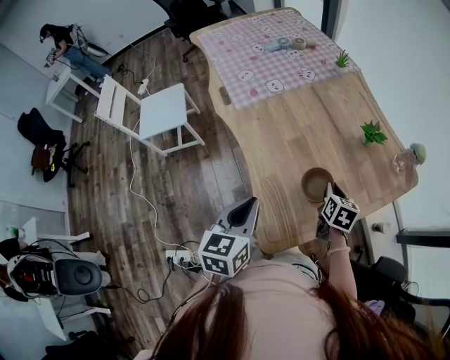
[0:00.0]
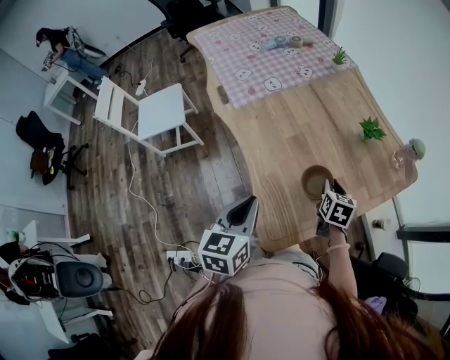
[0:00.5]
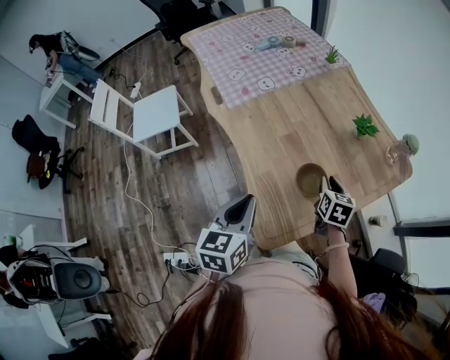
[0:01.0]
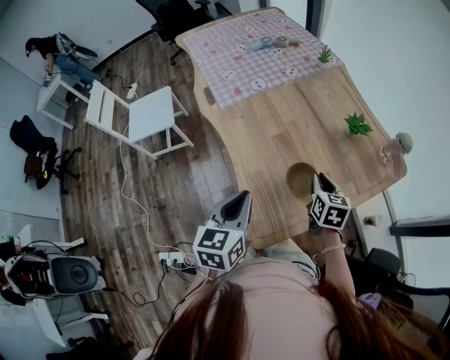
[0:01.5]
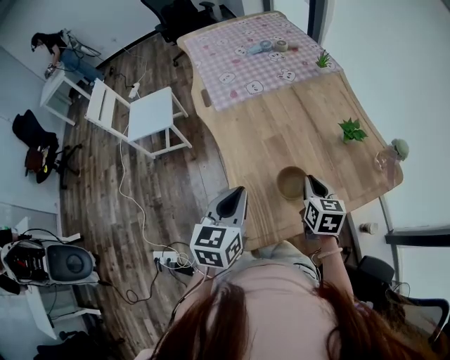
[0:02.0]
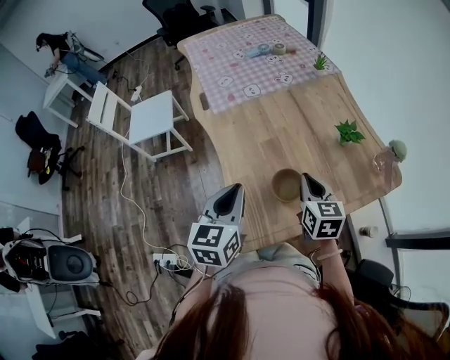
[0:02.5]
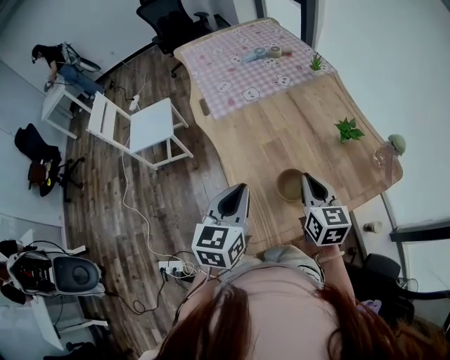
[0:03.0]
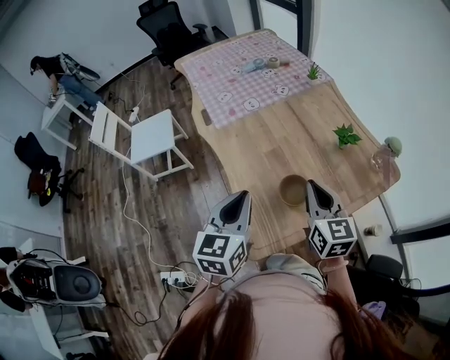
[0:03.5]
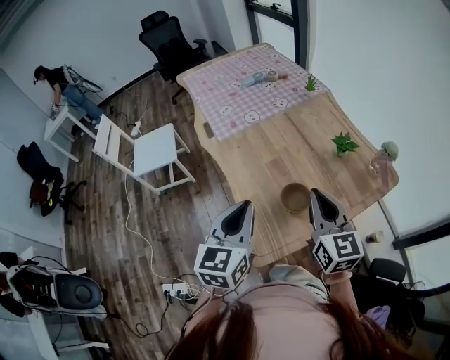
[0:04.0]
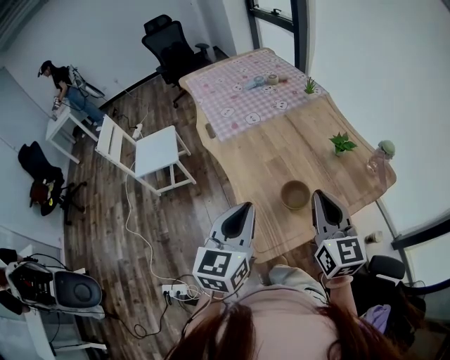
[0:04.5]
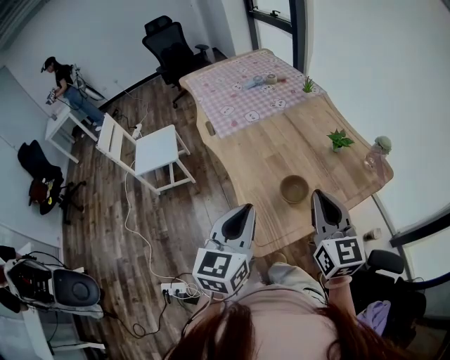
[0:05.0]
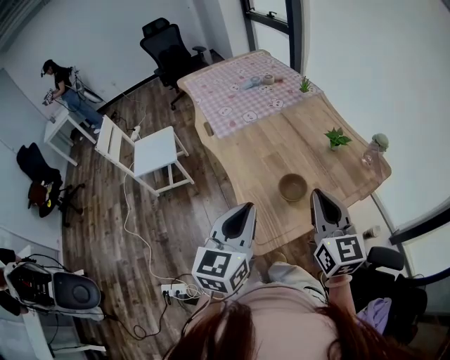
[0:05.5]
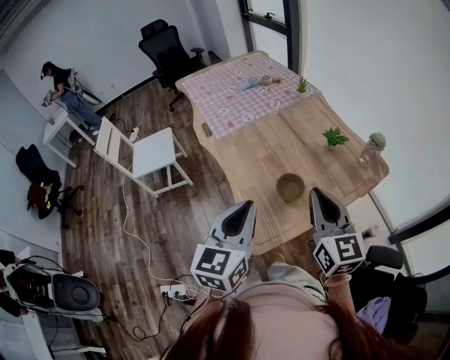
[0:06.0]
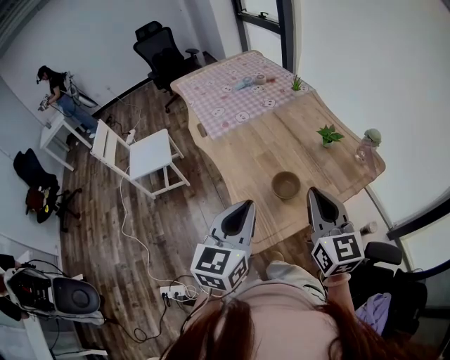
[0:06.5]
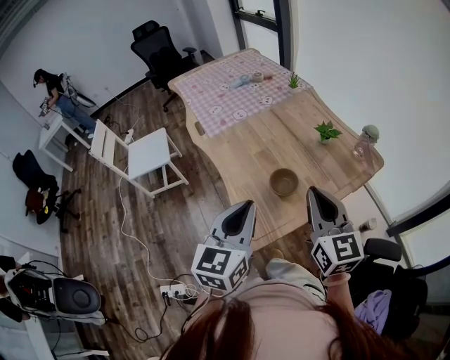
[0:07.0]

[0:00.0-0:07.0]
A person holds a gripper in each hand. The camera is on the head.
0:00.0 to 0:02.0: The left gripper moves approximately 5 cm, while the right gripper shifts about 5 cm upward.
0:02.0 to 0:03.5: The left gripper moves upward, approximately 5 cm. Meanwhile the right gripper goes approximately 10 cm upward.
0:03.5 to 0:05.0: The grippers both shift backward and upward by roughly 10 cm.
0:05.0 to 0:07.0: The grippers stay close to where they were, moving slightly.

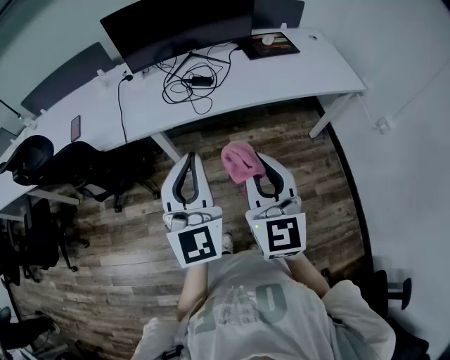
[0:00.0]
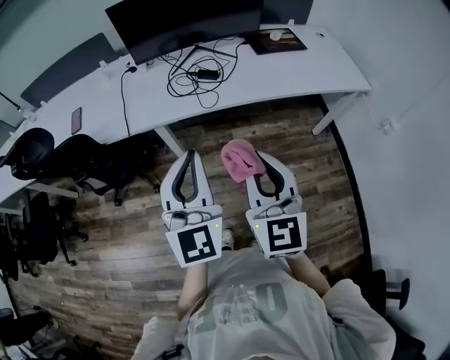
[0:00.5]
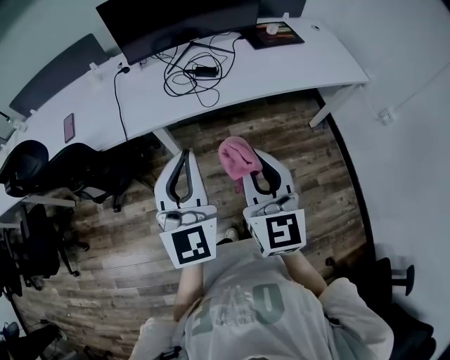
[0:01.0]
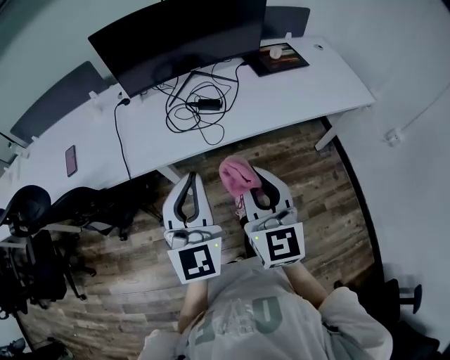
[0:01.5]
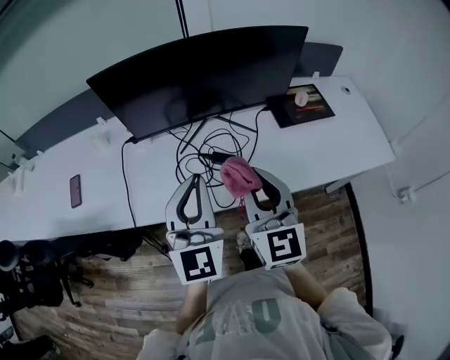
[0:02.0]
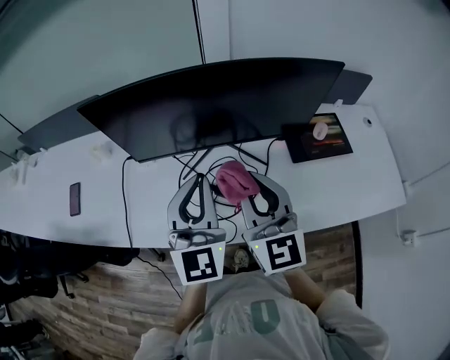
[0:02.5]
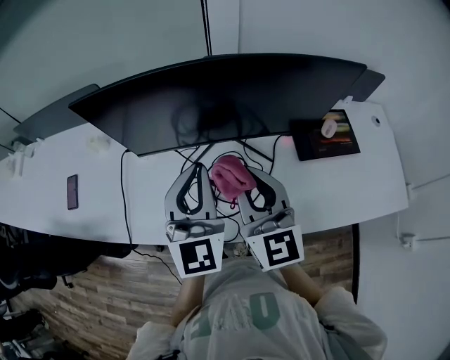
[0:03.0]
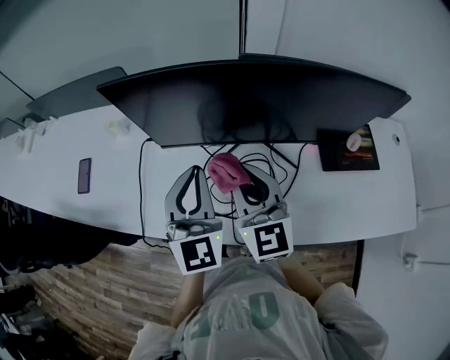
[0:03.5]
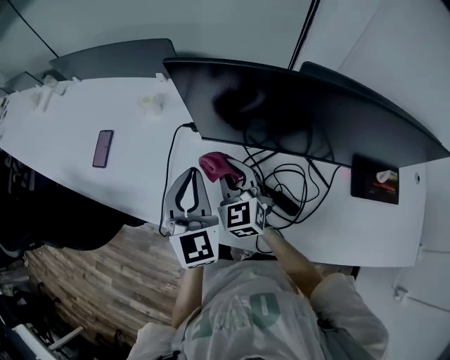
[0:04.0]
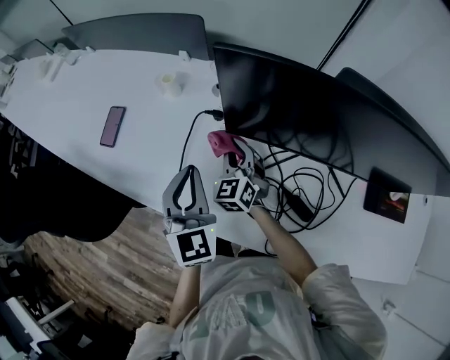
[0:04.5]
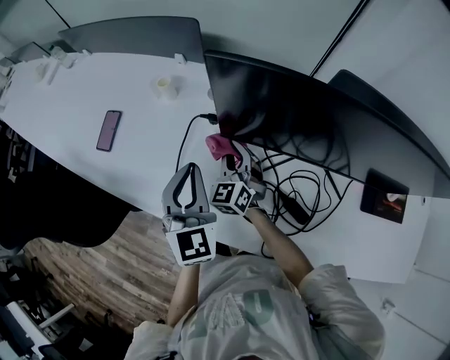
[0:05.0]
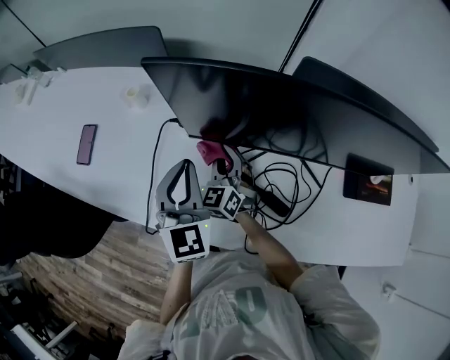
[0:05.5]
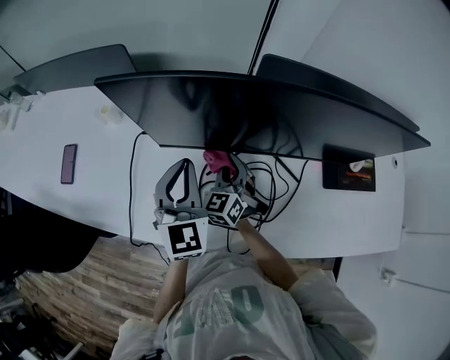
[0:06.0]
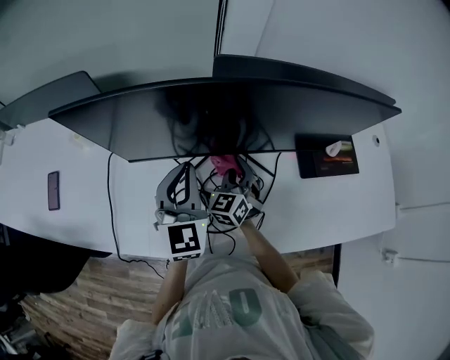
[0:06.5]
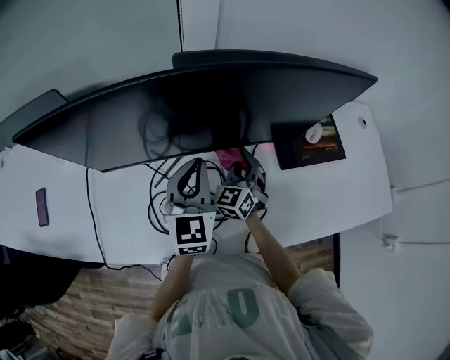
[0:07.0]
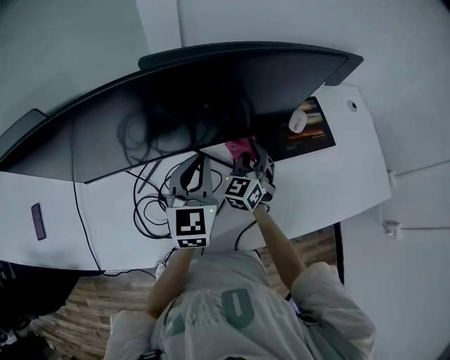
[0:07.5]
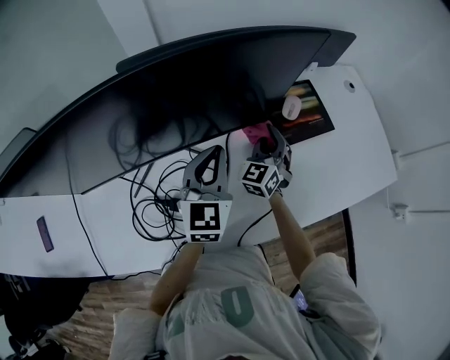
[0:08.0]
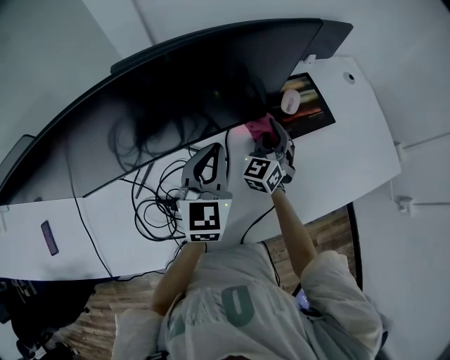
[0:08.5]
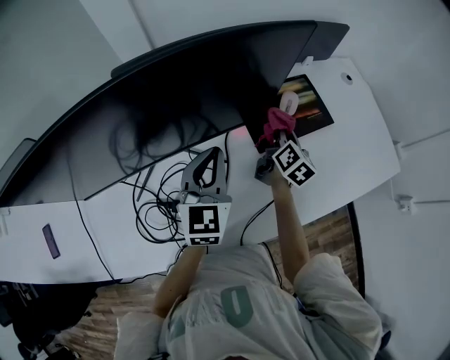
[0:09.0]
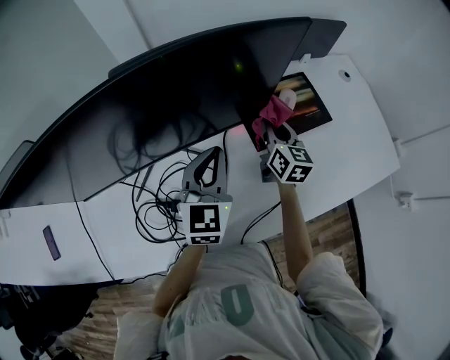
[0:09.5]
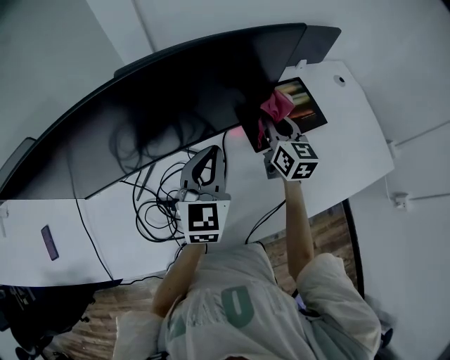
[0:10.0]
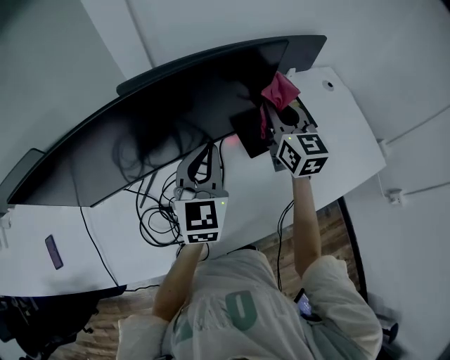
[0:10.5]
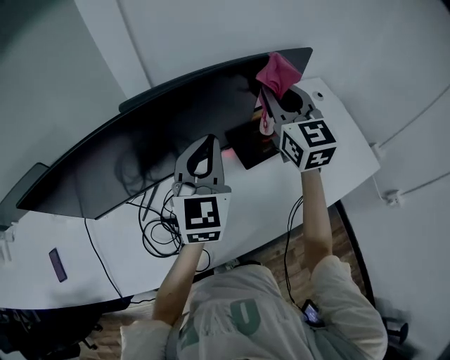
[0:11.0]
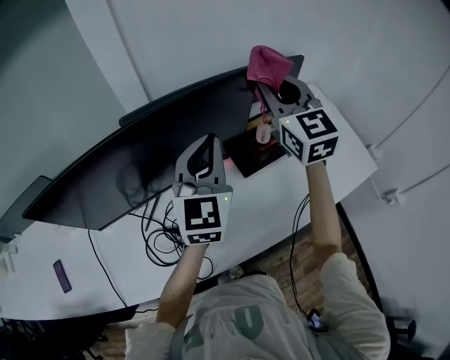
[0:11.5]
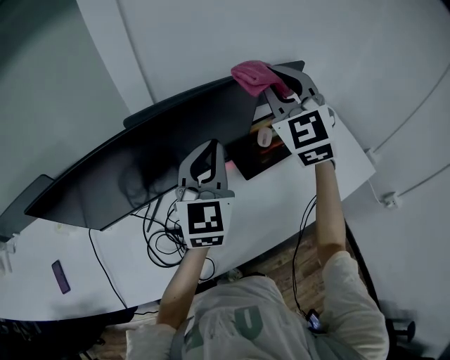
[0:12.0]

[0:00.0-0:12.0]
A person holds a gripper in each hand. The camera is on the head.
0:00.0 to 0:02.0: Both grippers move forward, about 35 cm.
0:02.0 to 0:04.0: The right gripper shifts by about 40 cm, and changes its angle by some 40 degrees, while the left gripper ends up about 30 cm from where it was, and changes its angle by roughly 30 degrees.
0:04.0 to 0:06.0: The left gripper is displaced to the right by some 10 cm, while the right gripper heads to the right and downward, covering roughly 15 cm, and changes its angle by about 30 degrees.
0:06.0 to 0:08.0: The left gripper changes place by some 35 cm, and changes its angle by roughly 30 degrees, while the right gripper changes place by roughly 40 cm, and changes its angle by about 30 degrees.
0:08.0 to 0:10.0: The right gripper travels upward by some 10 cm, and rotates around the line of its fingers by some 40 degrees, clockwise from behind.
0:10.0 to 0:12.0: The right gripper is displaced upward by approximately 30 cm, and rolls counterclockwise, seen from behind, by approximately 50 degrees, while the left gripper travels upward by some 15 cm.

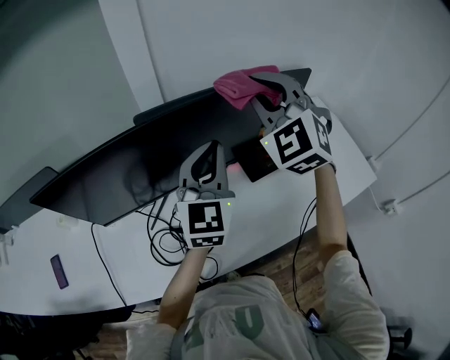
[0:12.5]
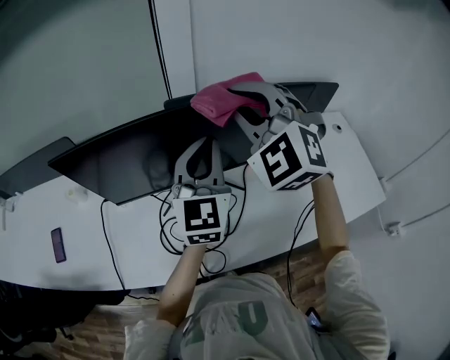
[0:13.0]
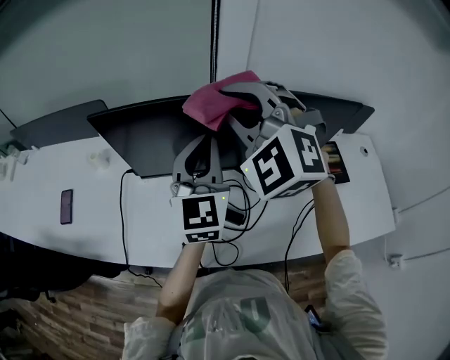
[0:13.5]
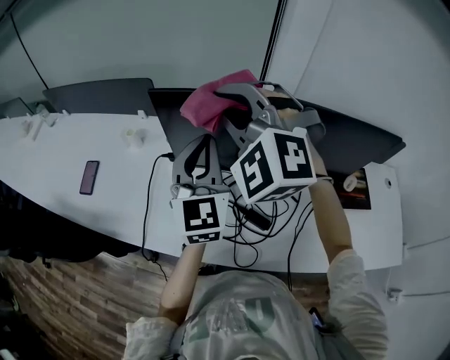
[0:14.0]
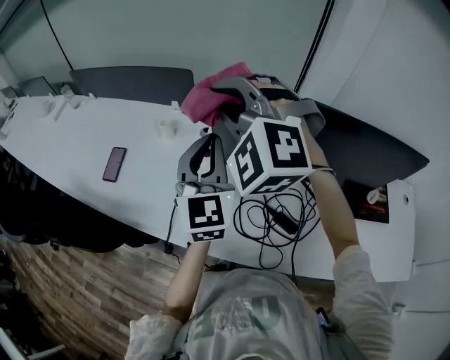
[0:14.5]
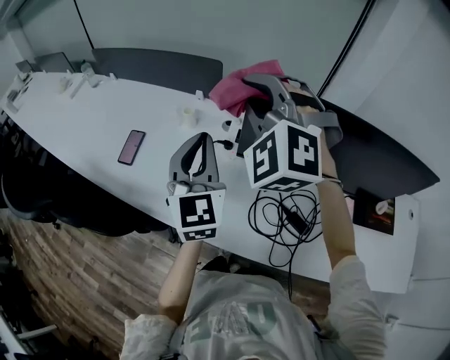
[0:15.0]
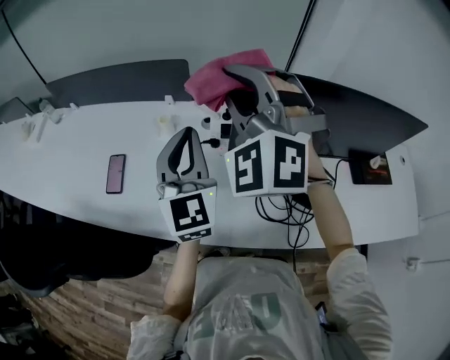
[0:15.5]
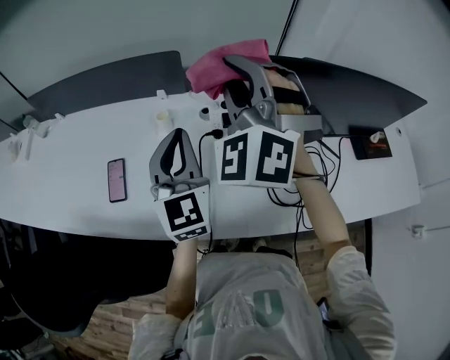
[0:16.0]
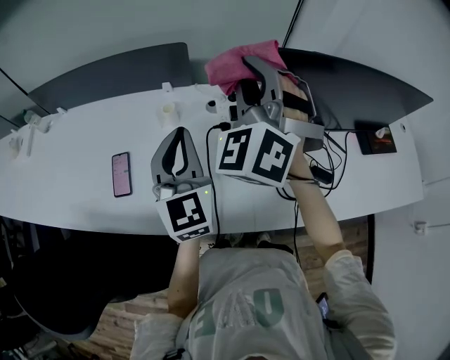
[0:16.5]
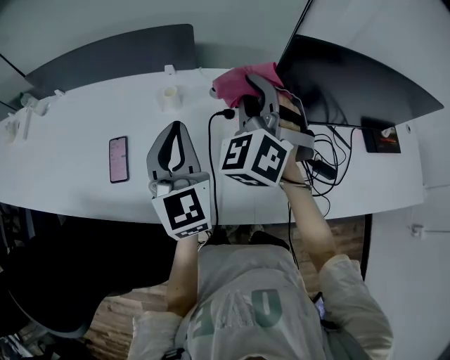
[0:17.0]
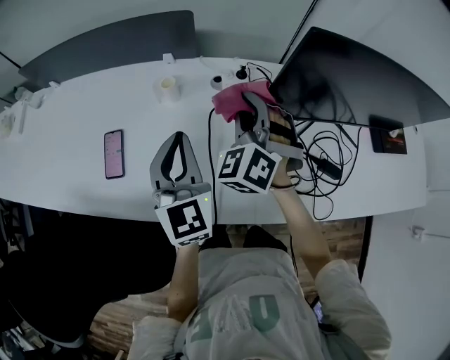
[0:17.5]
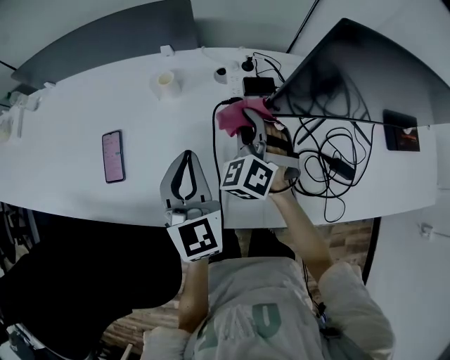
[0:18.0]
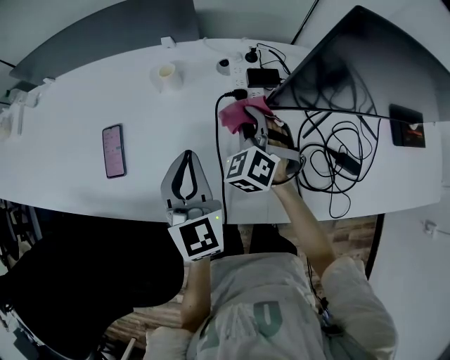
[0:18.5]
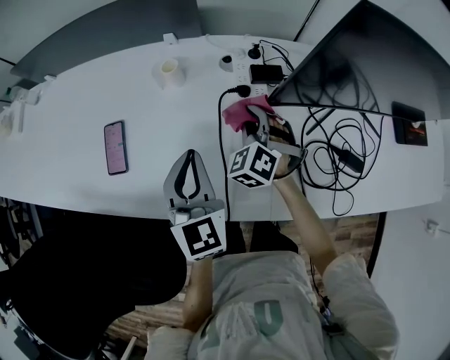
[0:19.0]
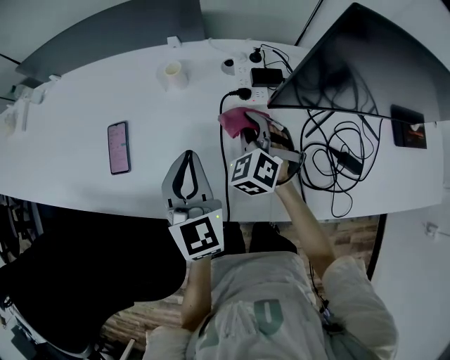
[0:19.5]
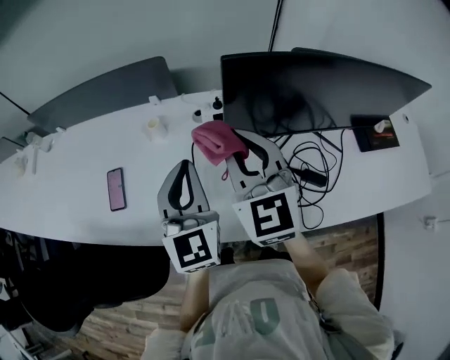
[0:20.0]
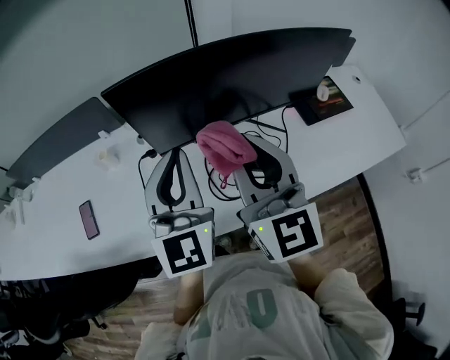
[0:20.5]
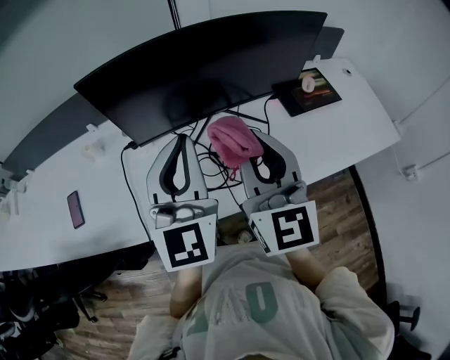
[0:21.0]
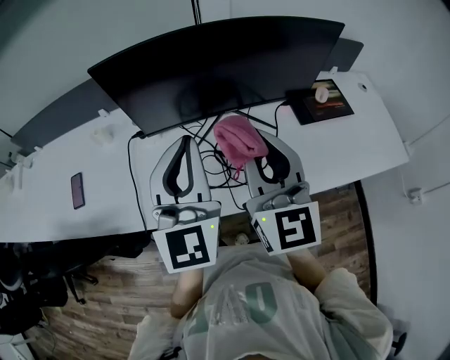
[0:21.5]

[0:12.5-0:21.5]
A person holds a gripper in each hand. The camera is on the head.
0:12.5 to 0:14.5: The pair of grippers is taken about 50 cm. The right gripper turns by about 50 degrees. Meanwhile the left gripper swivels some 40 degrees.
0:14.5 to 0:17.0: The left gripper is displaced to the left by roughly 20 cm; the right gripper heads downward and forward, covering about 15 cm, and changes its angle by some 50 degrees.
0:17.0 to 0:19.5: The right gripper moves downward, roughly 25 cm, and changes its angle by approximately 20 degrees, while the left gripper is displaced downward by approximately 10 cm.
0:19.5 to 0:21.5: The left gripper moves to the right and upward, roughly 40 cm, and swivels some 30 degrees; the right gripper travels to the right, upward and backward by roughly 50 cm, and tilts its fingers some 40 degrees upward.
